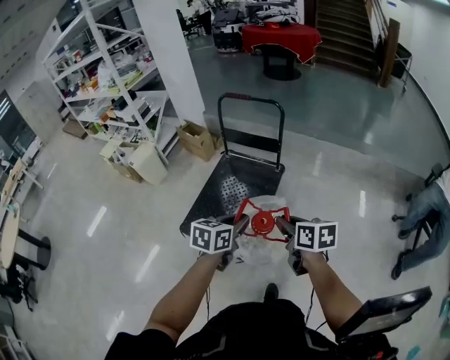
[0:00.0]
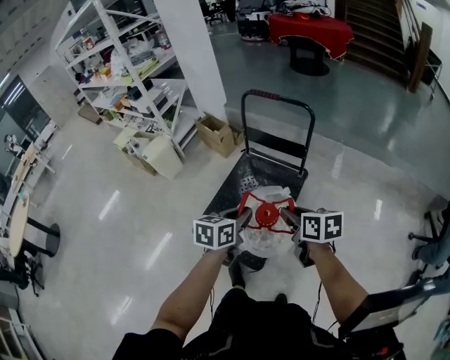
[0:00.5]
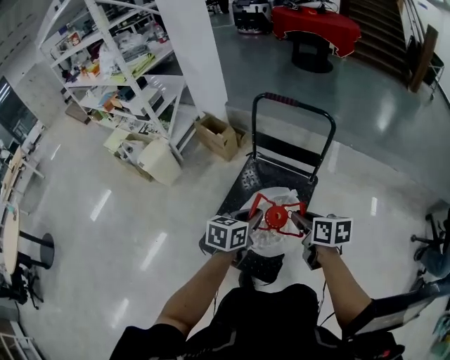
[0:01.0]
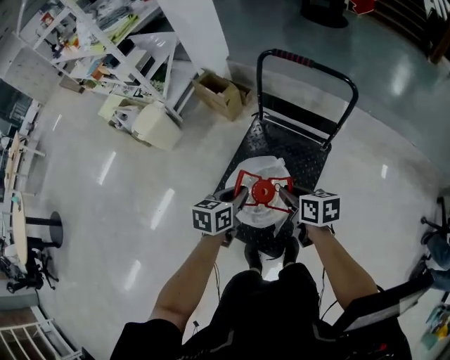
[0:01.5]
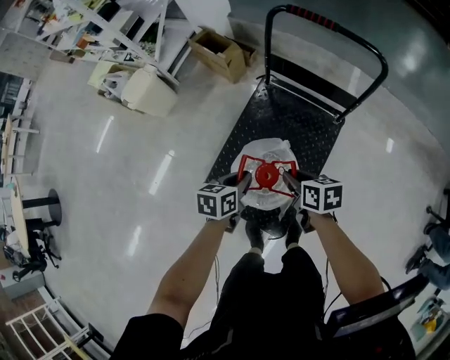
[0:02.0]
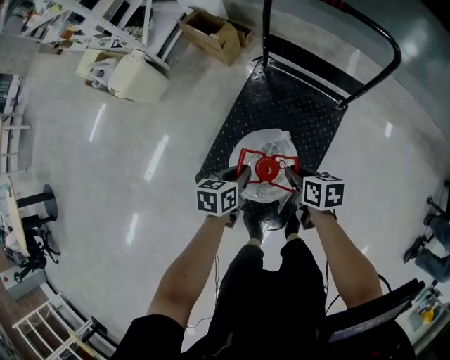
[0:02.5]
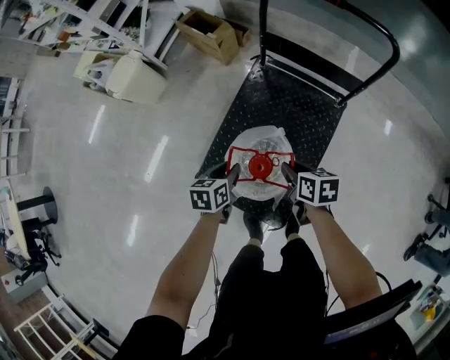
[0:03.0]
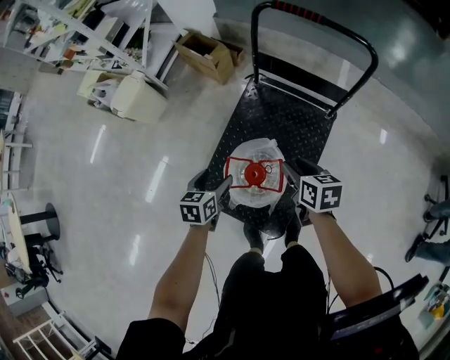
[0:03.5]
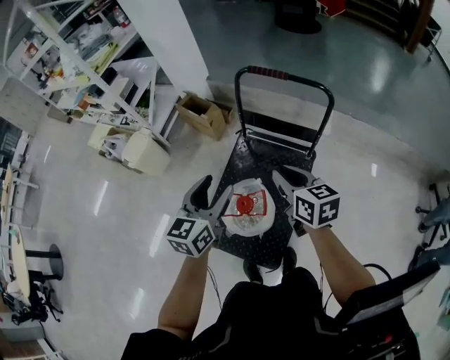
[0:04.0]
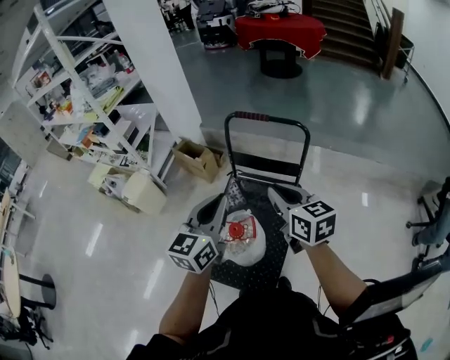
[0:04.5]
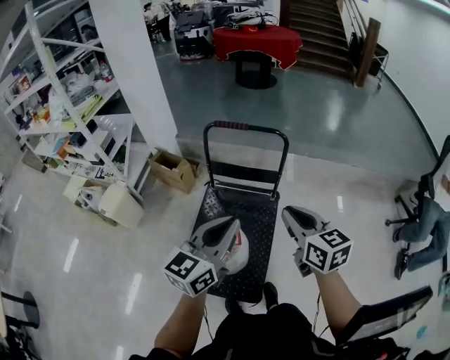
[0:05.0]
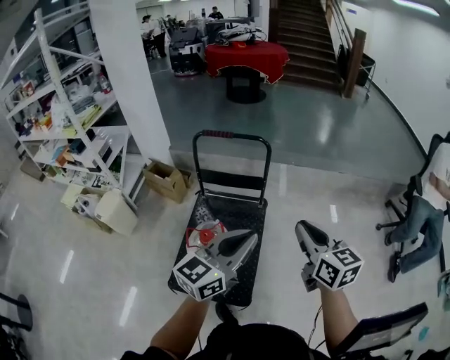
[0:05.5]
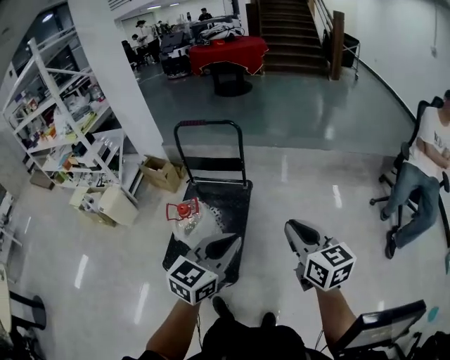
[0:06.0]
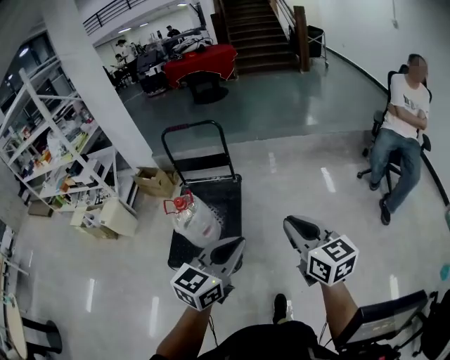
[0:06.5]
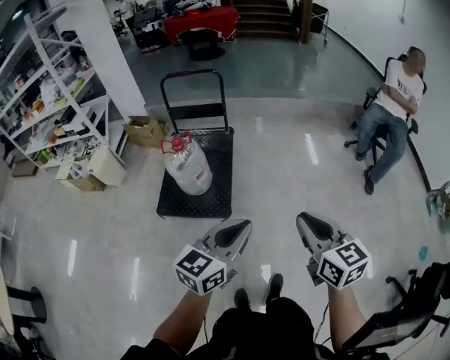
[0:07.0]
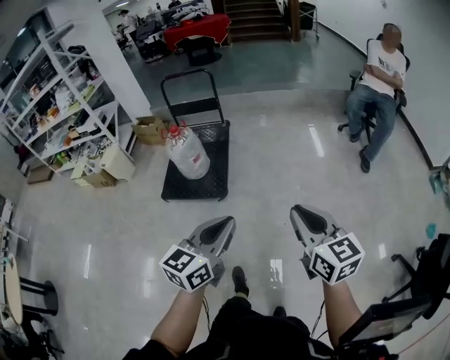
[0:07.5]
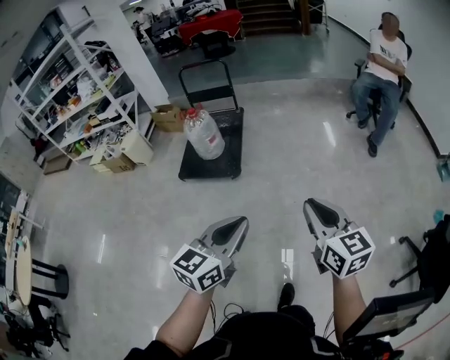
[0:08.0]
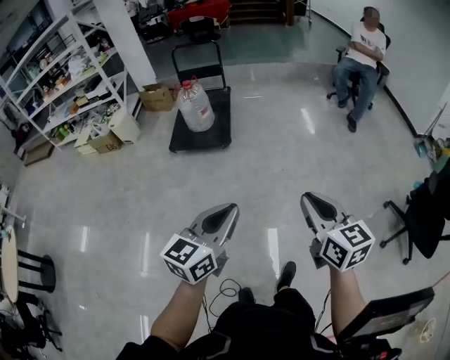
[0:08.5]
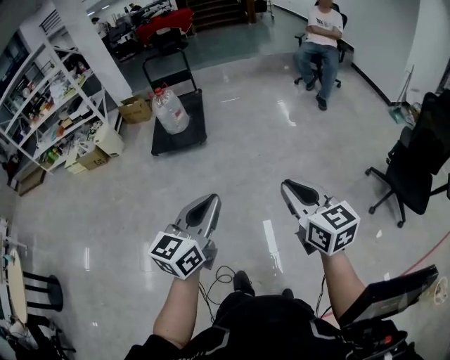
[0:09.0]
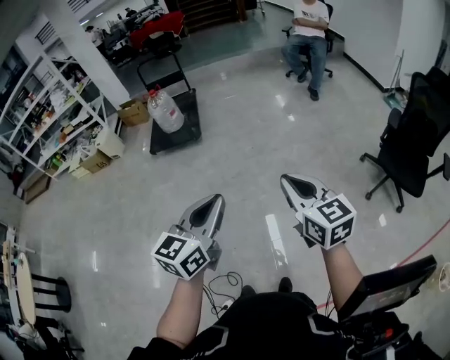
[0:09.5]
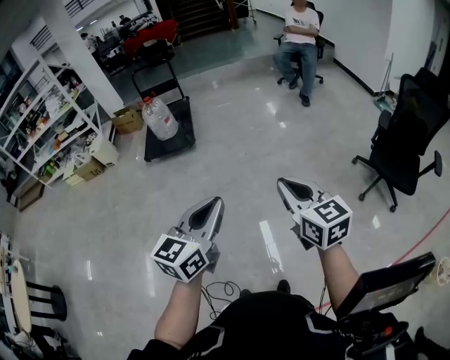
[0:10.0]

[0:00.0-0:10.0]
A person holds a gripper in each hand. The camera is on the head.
0:00.0 to 0:02.0: The pair of grippers is taken forward and to the left, some 50 cm. Both grippers move downward, roughly 25 cm. The left gripper swivels approximately 20 degrees.
0:02.0 to 0:04.0: The grippers both shift upward by some 25 cm. The left gripper swivels about 40 degrees, and opens its fingers; the right gripper rotates about 30 degrees, and opens, then closes again.
0:04.0 to 0:06.0: Both grippers are carried roughly 50 cm. The left gripper changes its angle by roughly 30 degrees, and closes, while the right gripper swivels approximately 20 degrees.
0:06.0 to 0:08.0: The two grippers travel together, backward, approximately 80 cm.
0:08.0 to 0:10.0: Both grippers are carried backward, roughly 50 cm.

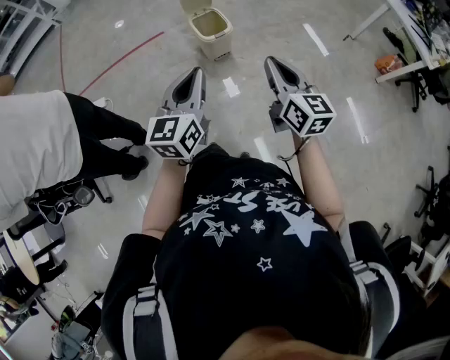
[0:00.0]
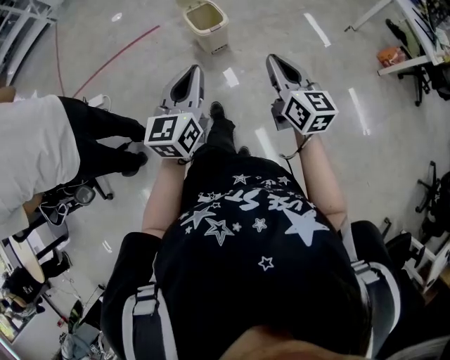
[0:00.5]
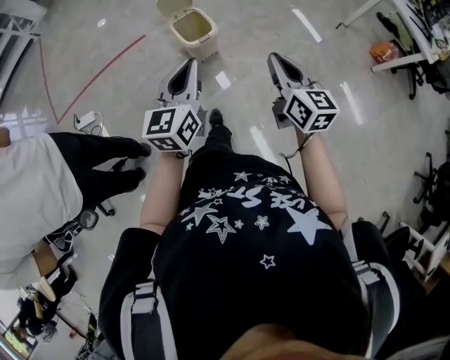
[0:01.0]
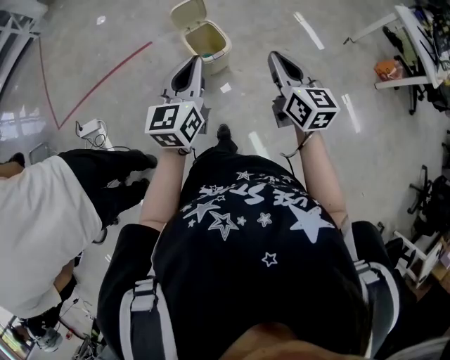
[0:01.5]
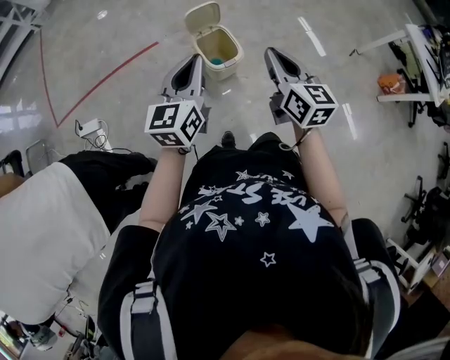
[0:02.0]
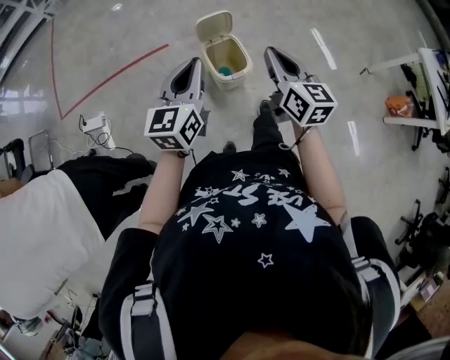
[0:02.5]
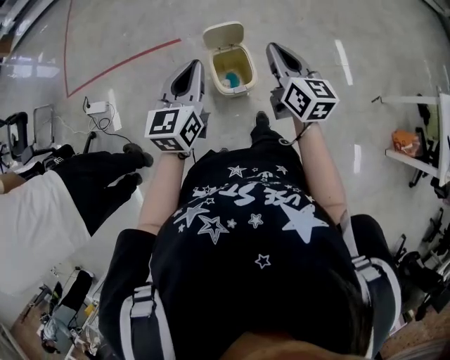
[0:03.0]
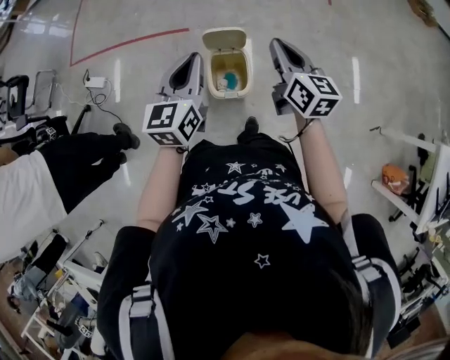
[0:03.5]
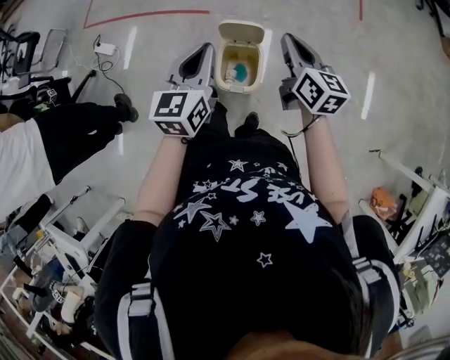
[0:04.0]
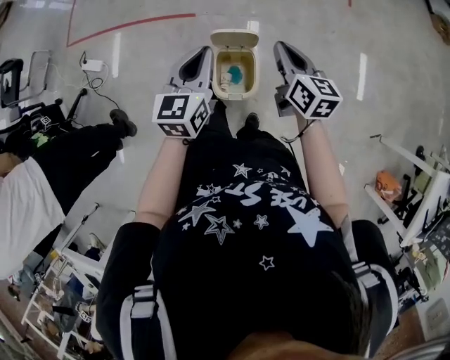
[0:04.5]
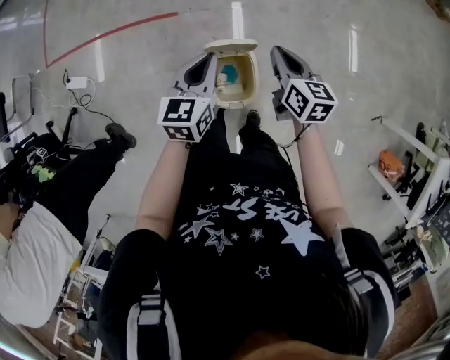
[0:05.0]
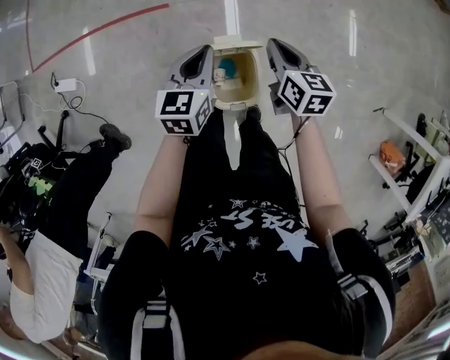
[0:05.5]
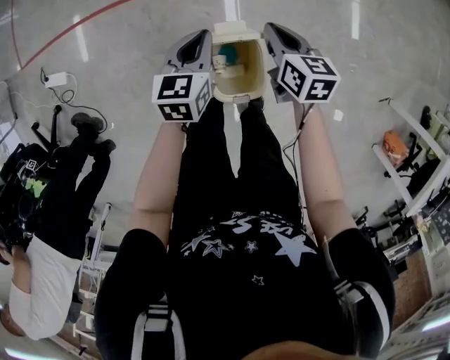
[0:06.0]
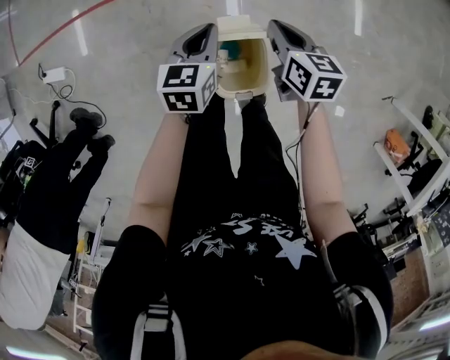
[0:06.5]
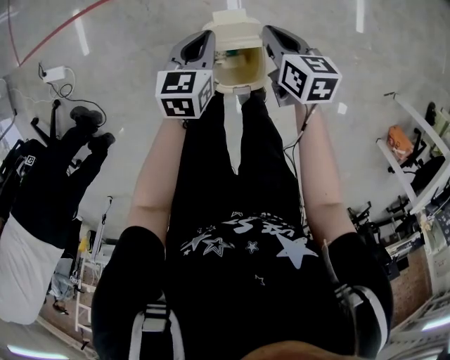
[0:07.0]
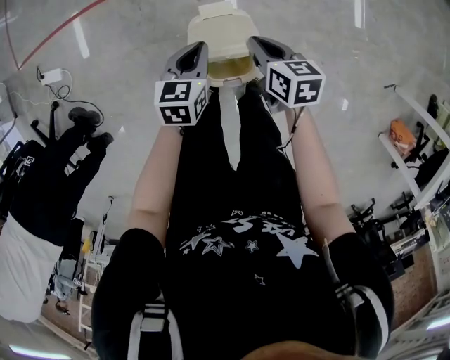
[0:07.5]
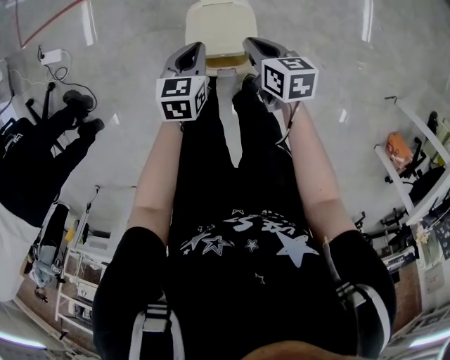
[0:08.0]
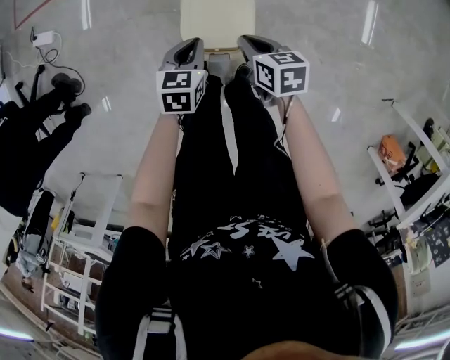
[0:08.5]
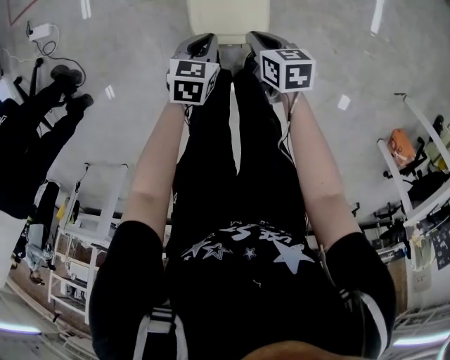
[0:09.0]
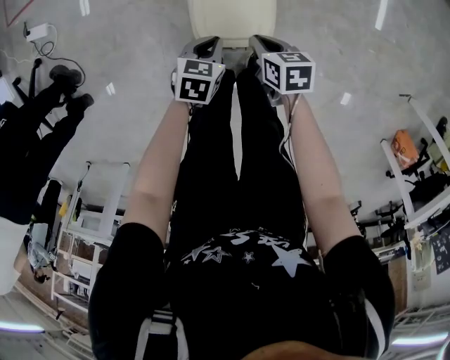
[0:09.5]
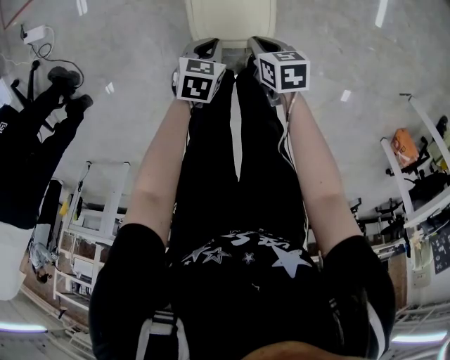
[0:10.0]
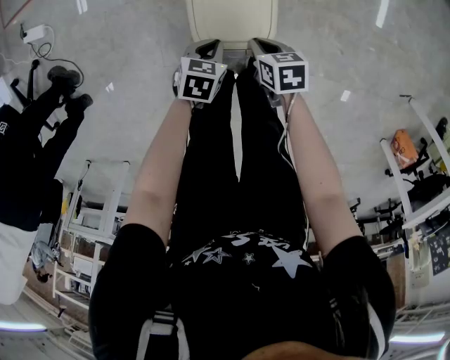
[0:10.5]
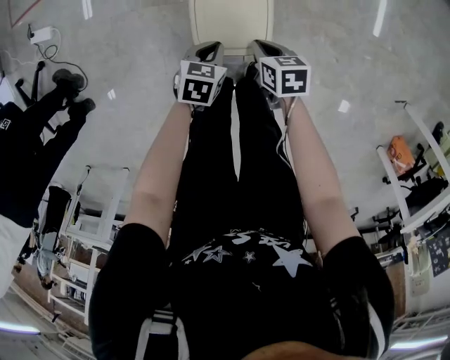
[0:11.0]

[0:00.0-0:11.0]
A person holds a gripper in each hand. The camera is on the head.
0:00.0 to 0:02.0: The two grippers go about 30 cm forward.
0:02.0 to 0:03.5: The right gripper shifts by roughly 30 cm, and changes its angle by about 20 degrees. Meanwhile the left gripper shifts by roughly 20 cm, and changes its angle by roughly 30 degrees.
0:03.5 to 0:05.5: The grippers both shift downward and forward by roughly 30 cm. The right gripper rotates approximately 20 degrees. The left gripper swivels approximately 20 degrees.
0:05.5 to 0:07.5: Both grippers move downward and backward, roughly 15 cm.
0:07.5 to 0:09.0: Both grippers move backward and downward, roughly 20 cm.

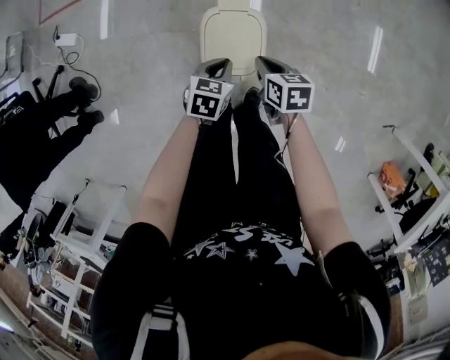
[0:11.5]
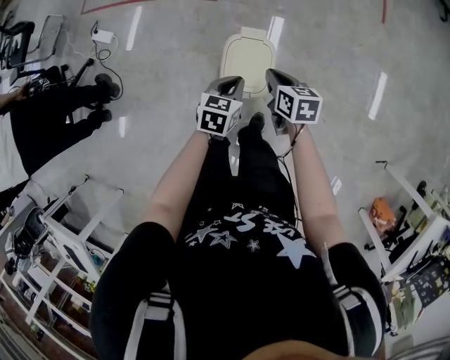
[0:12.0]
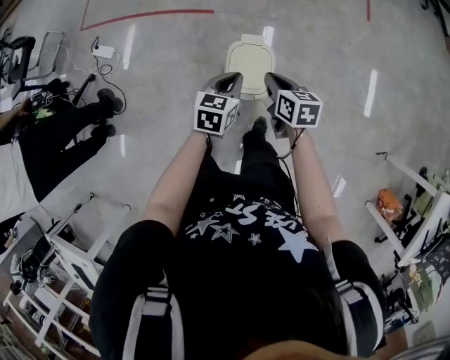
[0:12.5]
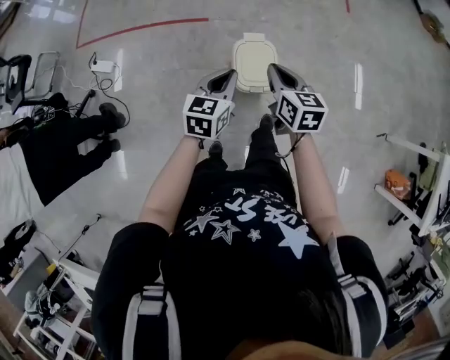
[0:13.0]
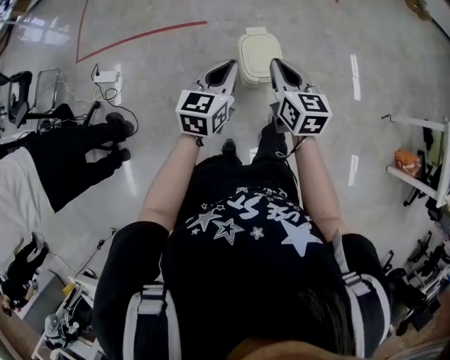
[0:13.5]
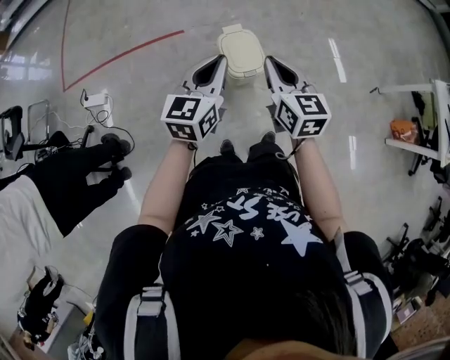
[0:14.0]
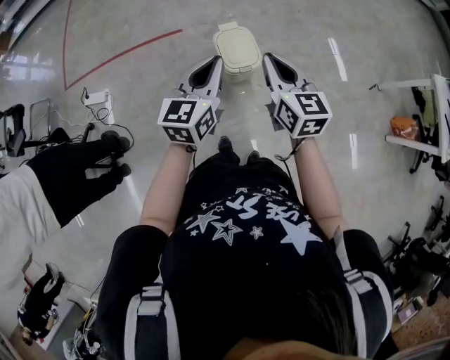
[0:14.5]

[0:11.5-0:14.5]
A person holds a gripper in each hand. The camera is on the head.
0:11.5 to 0:13.0: The right gripper goes about 25 cm upward, and turns by some 30 degrees. The left gripper shifts roughly 30 cm upward and to the left, and turns by some 30 degrees.
0:13.0 to 0:14.5: The right gripper shifts approximately 20 cm backward and upward. The left gripper goes about 15 cm upward and backward.

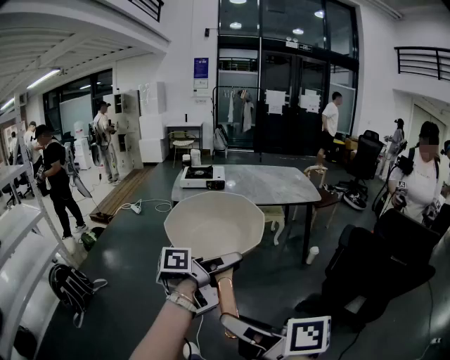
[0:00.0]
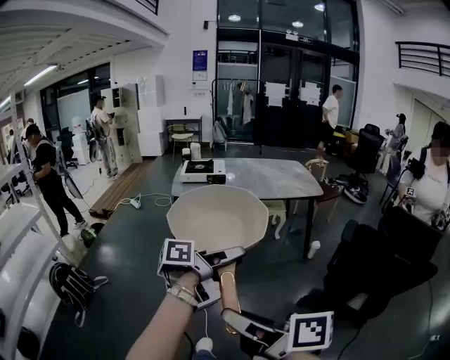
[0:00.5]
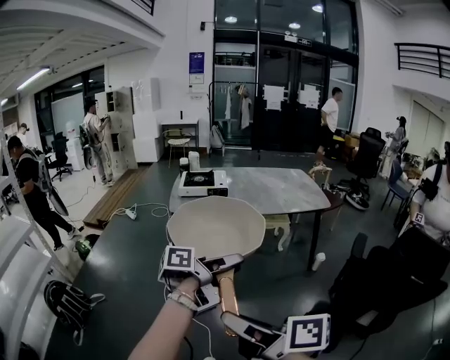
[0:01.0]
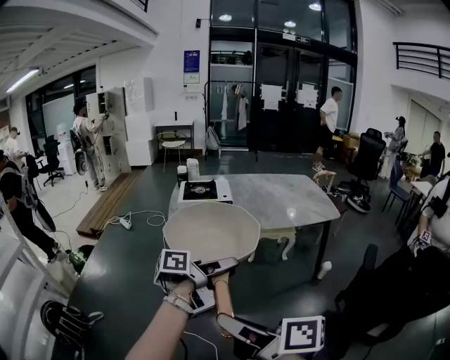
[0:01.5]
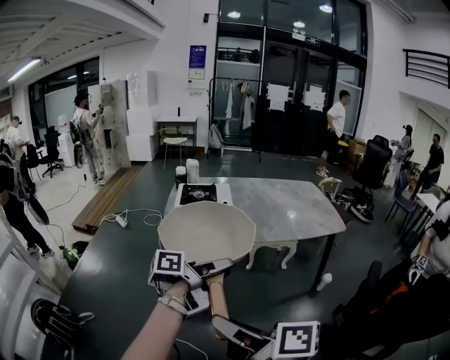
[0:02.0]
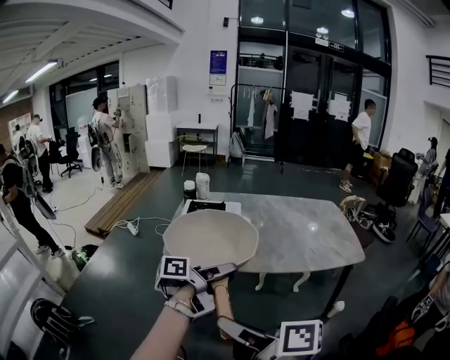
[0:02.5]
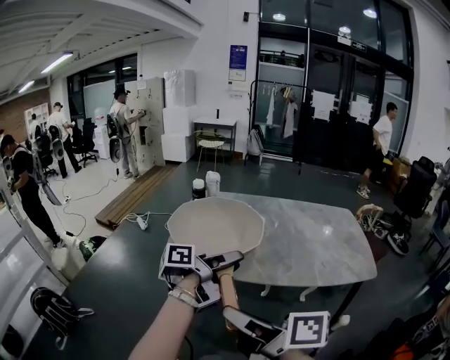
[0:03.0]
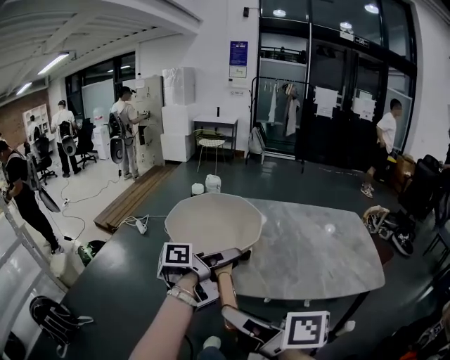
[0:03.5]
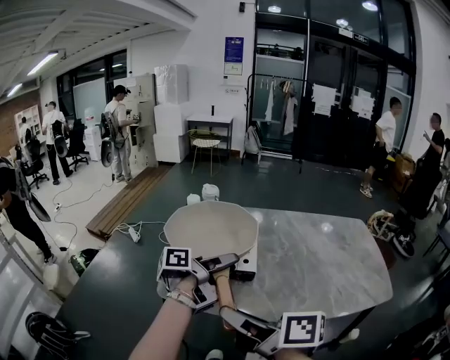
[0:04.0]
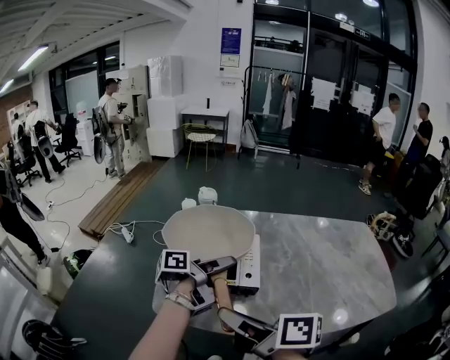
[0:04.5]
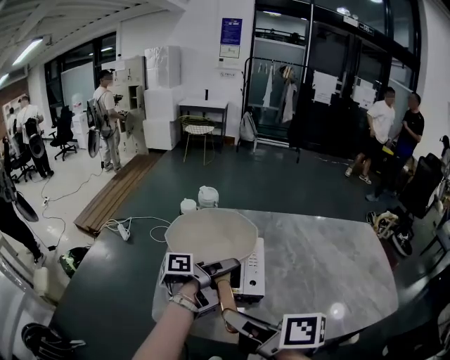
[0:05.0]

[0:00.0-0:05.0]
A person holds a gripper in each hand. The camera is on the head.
0:00.0 to 0:02.5: The right gripper ends up about 50 cm from where it was.
0:02.5 to 0:05.0: The right gripper changes place by approximately 35 cm.
